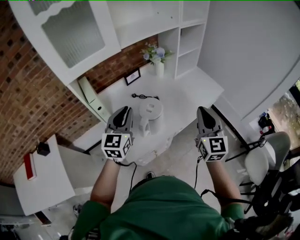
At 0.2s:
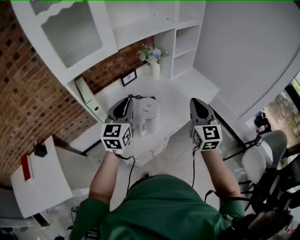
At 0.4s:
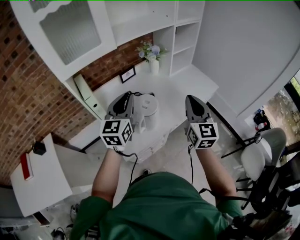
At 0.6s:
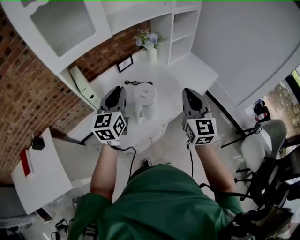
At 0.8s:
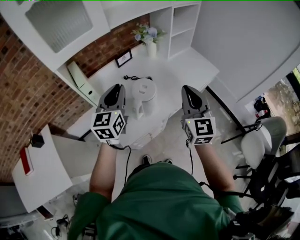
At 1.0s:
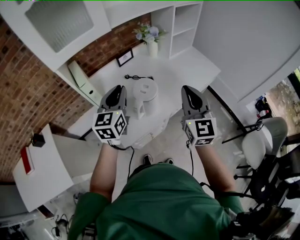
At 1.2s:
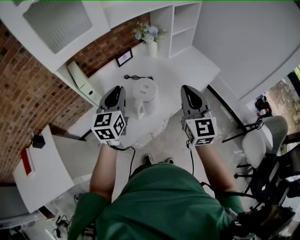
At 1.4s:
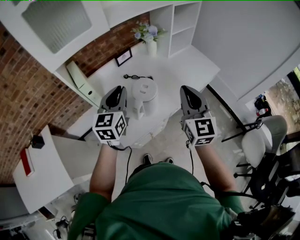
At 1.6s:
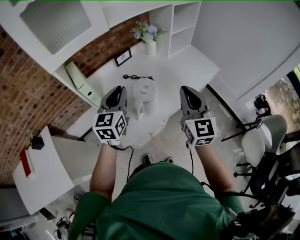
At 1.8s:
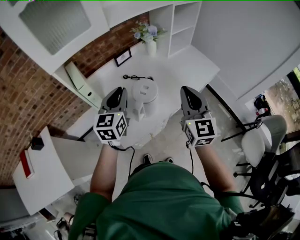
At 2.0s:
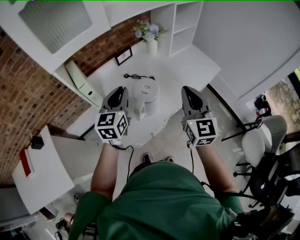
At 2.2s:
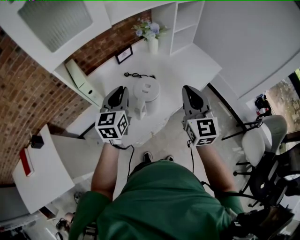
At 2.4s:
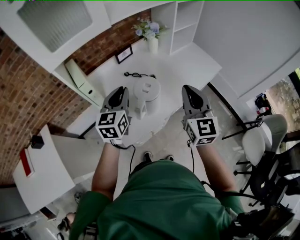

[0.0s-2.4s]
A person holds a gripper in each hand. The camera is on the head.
0.0s to 1.2s: The right gripper is displaced to the left by about 5 cm.
1.2s to 2.4s: The grippers make only small movements.

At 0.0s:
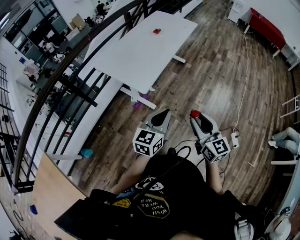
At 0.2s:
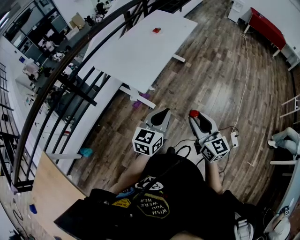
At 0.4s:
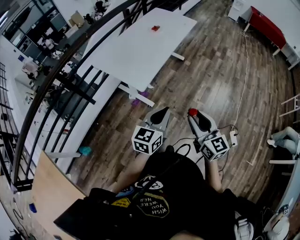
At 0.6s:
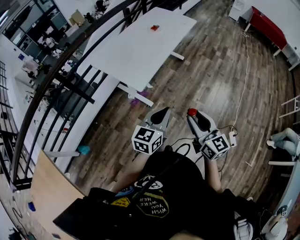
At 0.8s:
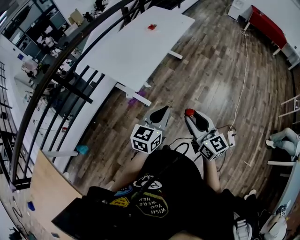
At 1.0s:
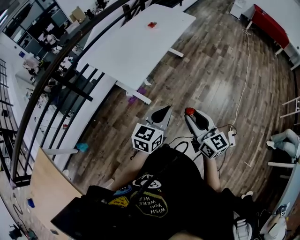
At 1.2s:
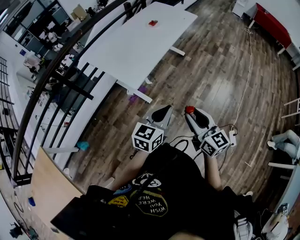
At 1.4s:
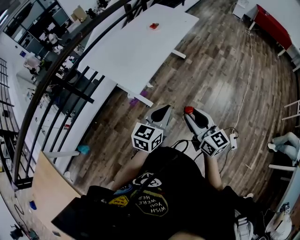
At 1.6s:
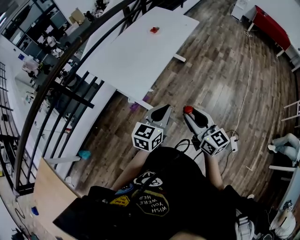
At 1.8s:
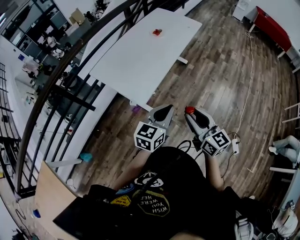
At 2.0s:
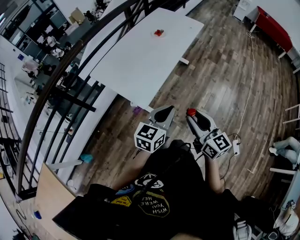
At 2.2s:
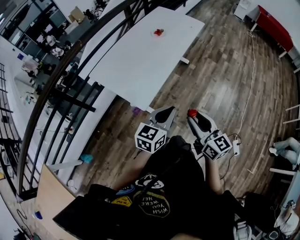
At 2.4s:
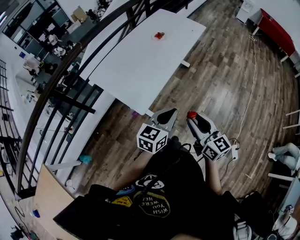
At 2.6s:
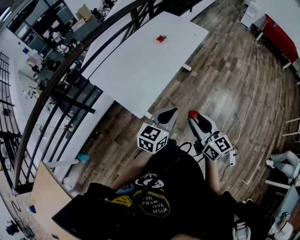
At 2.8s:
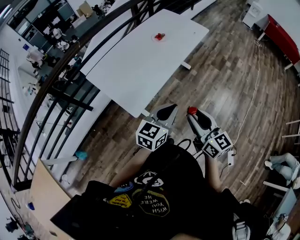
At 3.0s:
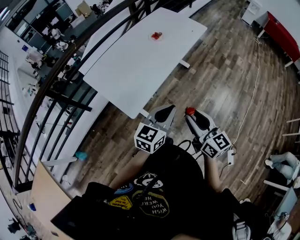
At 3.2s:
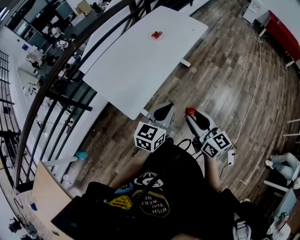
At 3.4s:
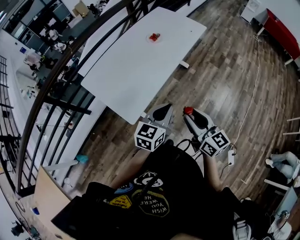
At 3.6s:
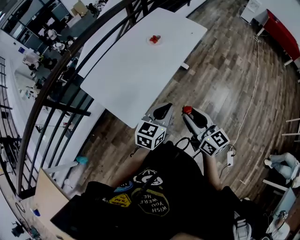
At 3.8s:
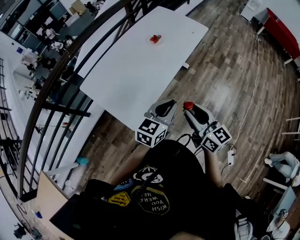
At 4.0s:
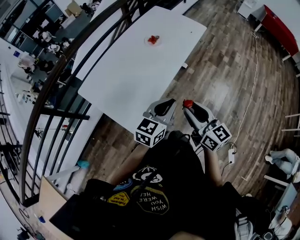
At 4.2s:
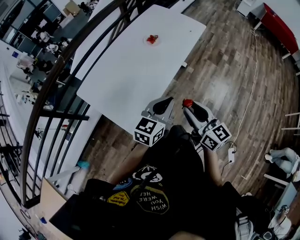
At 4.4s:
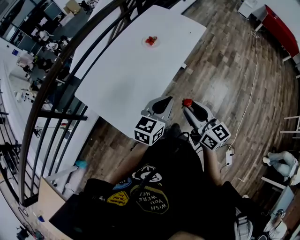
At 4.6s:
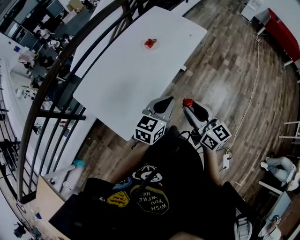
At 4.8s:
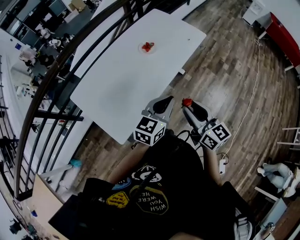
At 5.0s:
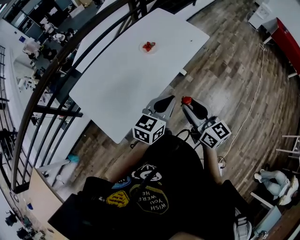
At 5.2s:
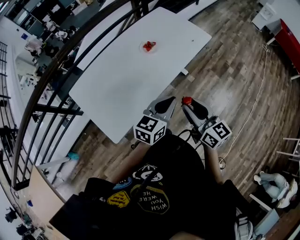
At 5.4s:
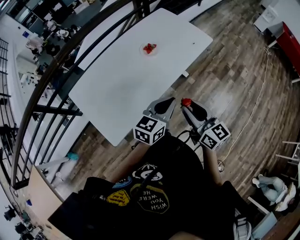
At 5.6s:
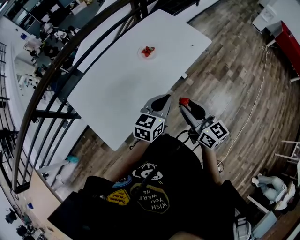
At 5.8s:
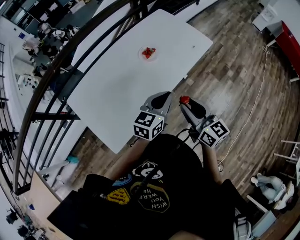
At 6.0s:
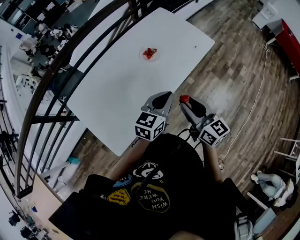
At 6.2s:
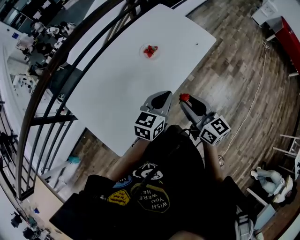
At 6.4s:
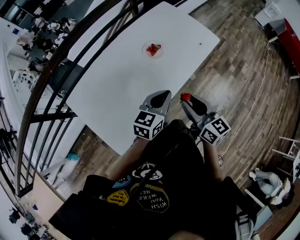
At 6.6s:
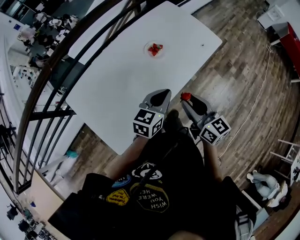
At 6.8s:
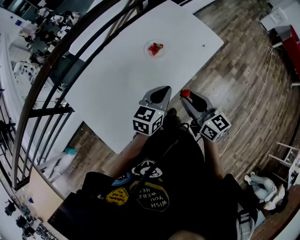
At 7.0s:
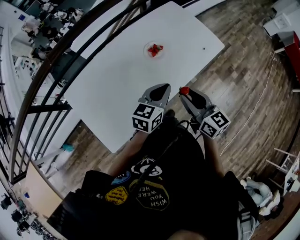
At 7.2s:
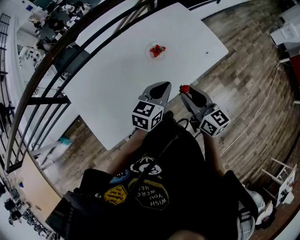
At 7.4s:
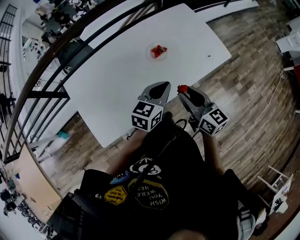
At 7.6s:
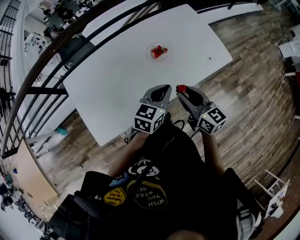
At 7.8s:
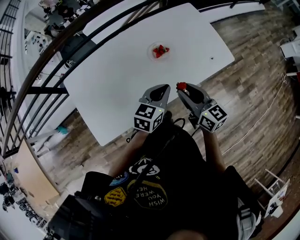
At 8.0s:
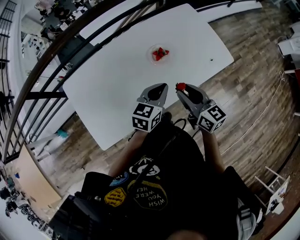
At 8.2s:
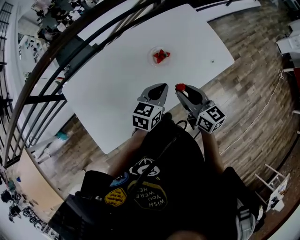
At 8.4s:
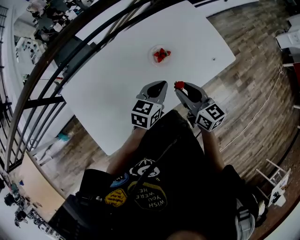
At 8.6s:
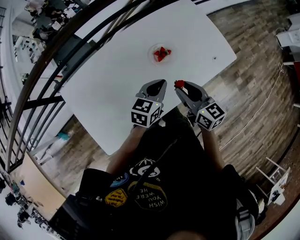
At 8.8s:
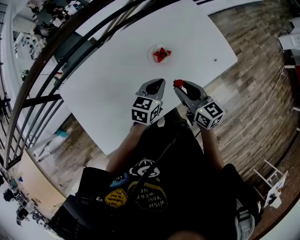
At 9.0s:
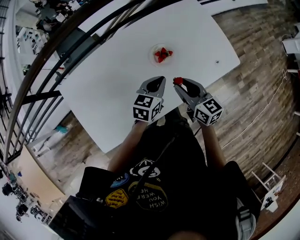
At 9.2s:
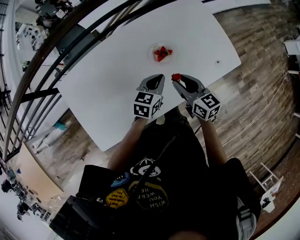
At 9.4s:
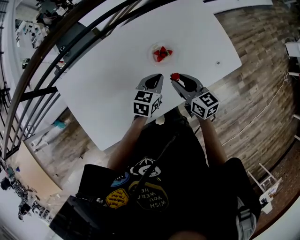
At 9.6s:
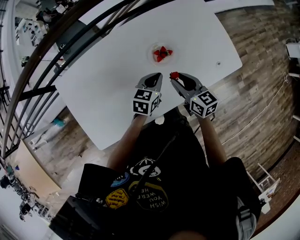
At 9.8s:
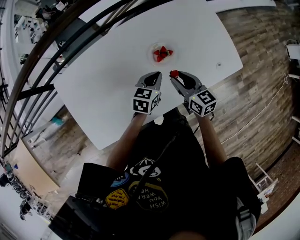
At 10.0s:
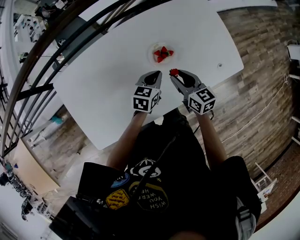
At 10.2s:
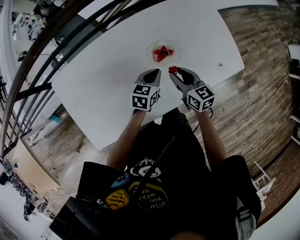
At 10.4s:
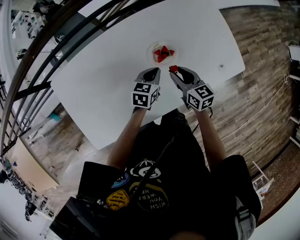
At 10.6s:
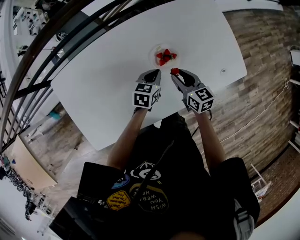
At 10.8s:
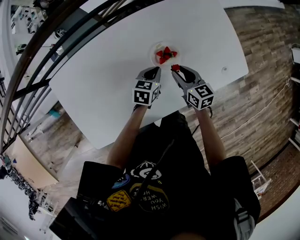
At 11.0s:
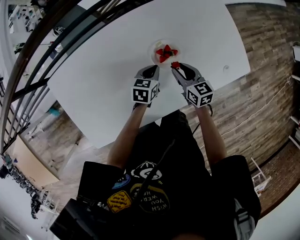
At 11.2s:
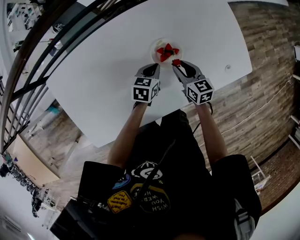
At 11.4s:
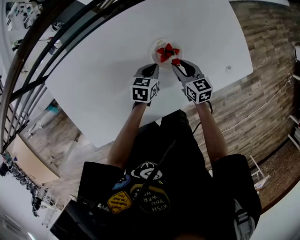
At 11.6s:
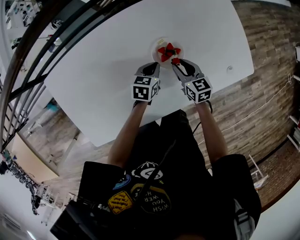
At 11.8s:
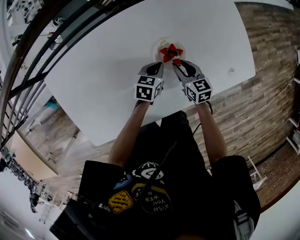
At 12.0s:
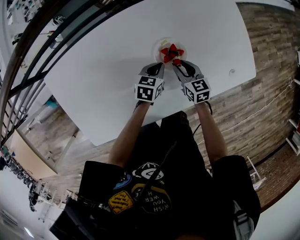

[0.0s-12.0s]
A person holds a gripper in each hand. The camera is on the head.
0.0s to 1.6s: Both grippers move forward, some 15 cm.
1.6s to 3.0s: The grippers both shift forward by some 15 cm.
3.0s to 4.4s: The two grippers go about 20 cm forward.
4.4s to 6.0s: The grippers both shift forward by about 20 cm.
6.0s to 7.6s: Both grippers travel together forward, some 15 cm.
7.6s to 9.0s: The grippers both shift forward and downward by approximately 15 cm.
9.0s to 10.4s: The grippers both shift downward and forward by roughly 15 cm.
10.4s to 12.0s: Both grippers travel together downward, roughly 10 cm.

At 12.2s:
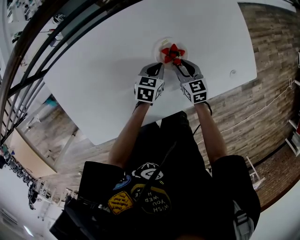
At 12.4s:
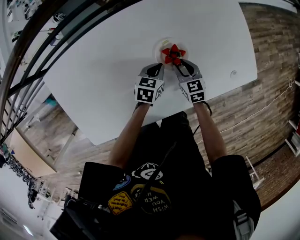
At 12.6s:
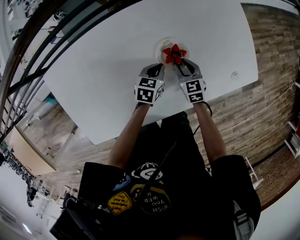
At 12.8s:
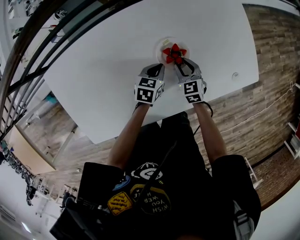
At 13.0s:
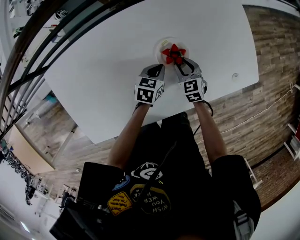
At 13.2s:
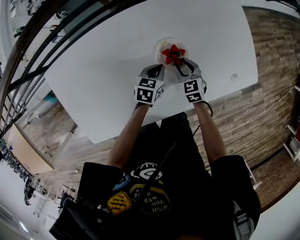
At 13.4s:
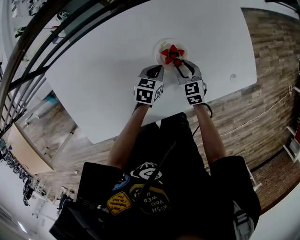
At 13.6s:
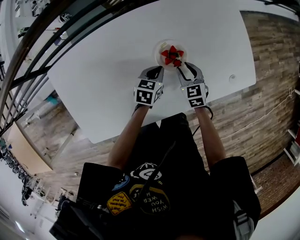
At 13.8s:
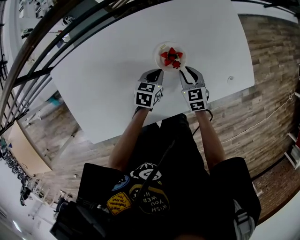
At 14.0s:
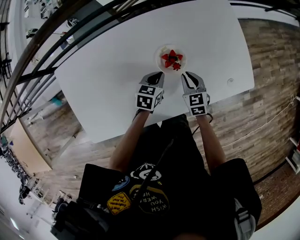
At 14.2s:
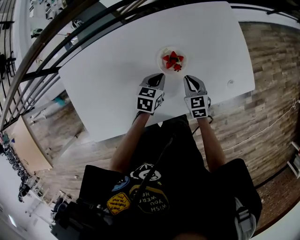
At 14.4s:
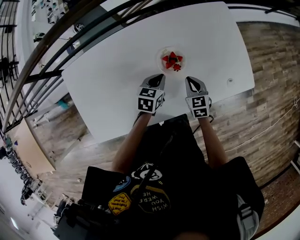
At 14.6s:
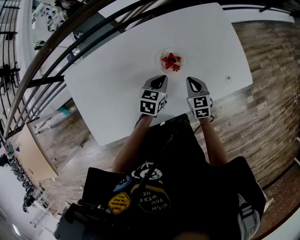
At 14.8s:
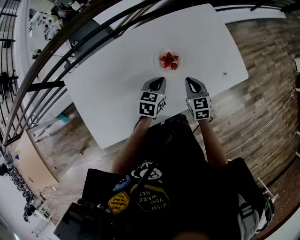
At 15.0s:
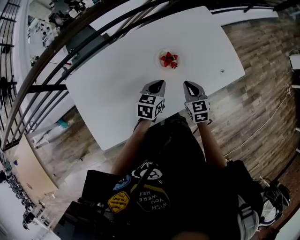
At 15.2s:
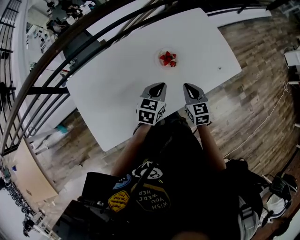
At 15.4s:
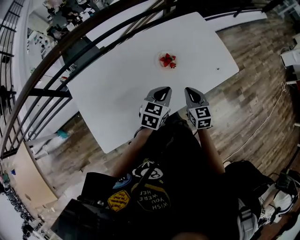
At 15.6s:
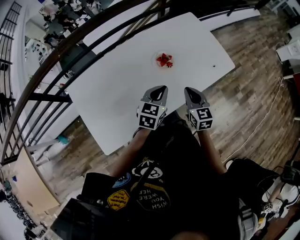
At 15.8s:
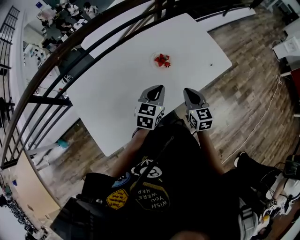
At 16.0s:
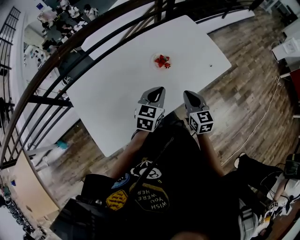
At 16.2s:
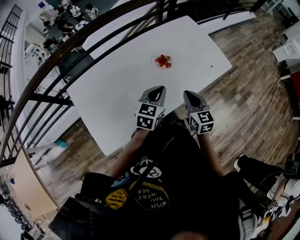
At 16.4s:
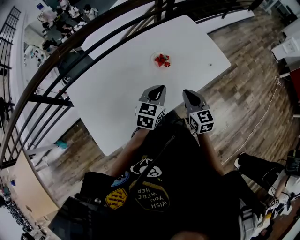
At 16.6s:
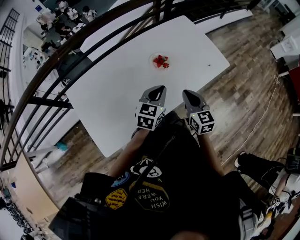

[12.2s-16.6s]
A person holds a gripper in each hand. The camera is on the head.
12.2s to 13.6s: The grippers move only a little.
13.6s to 15.2s: The grippers both shift upward and backward by roughly 20 cm. The right gripper closes.
15.2s to 16.6s: Both grippers move backward and upward, some 10 cm.

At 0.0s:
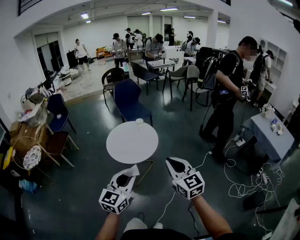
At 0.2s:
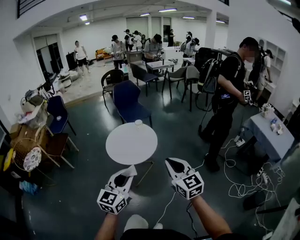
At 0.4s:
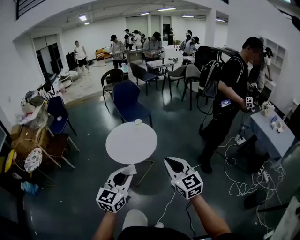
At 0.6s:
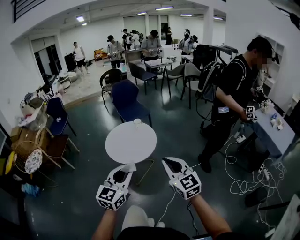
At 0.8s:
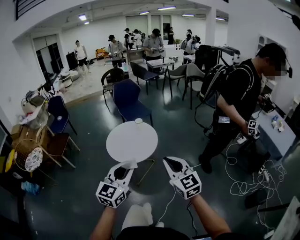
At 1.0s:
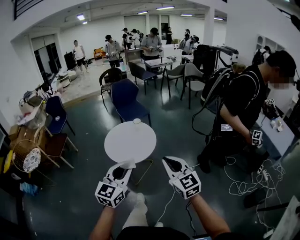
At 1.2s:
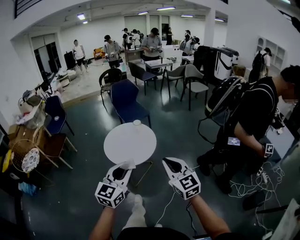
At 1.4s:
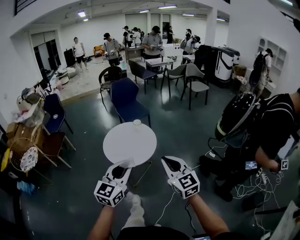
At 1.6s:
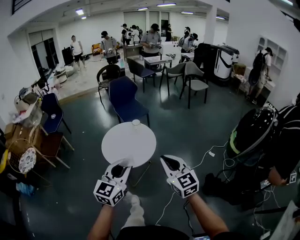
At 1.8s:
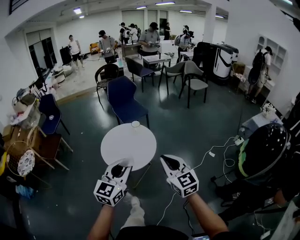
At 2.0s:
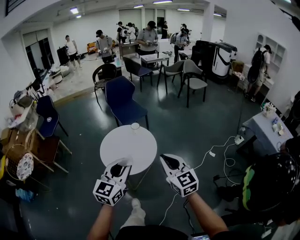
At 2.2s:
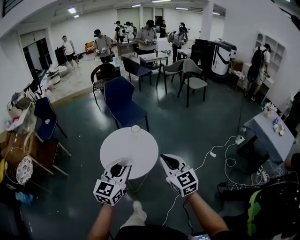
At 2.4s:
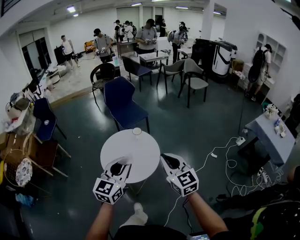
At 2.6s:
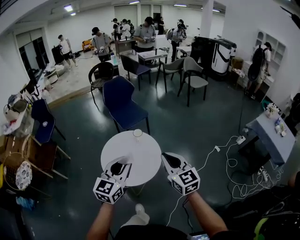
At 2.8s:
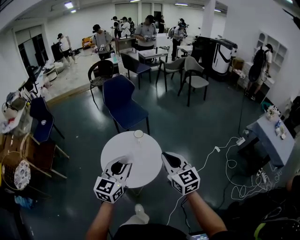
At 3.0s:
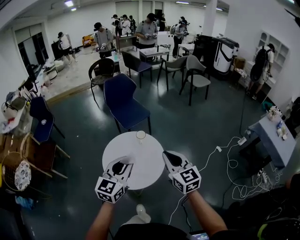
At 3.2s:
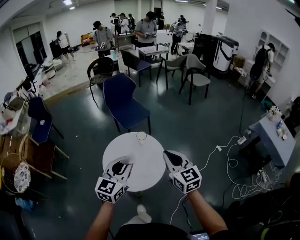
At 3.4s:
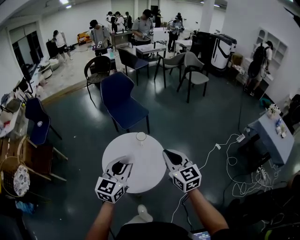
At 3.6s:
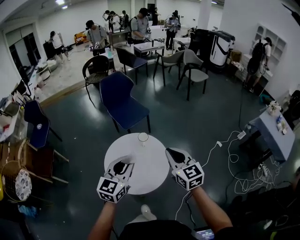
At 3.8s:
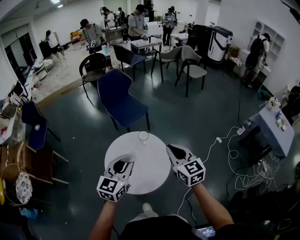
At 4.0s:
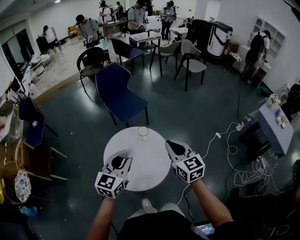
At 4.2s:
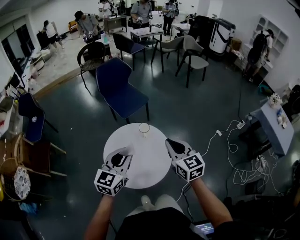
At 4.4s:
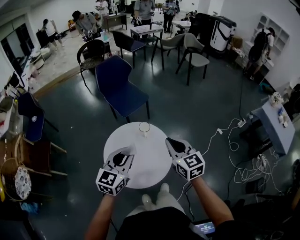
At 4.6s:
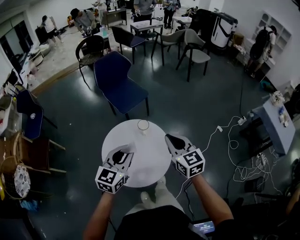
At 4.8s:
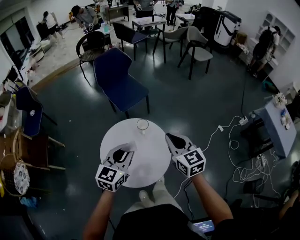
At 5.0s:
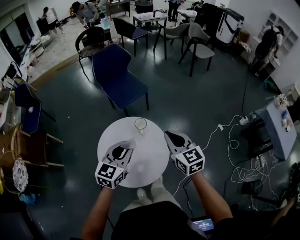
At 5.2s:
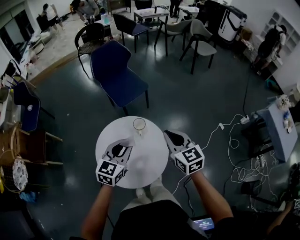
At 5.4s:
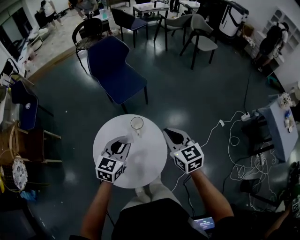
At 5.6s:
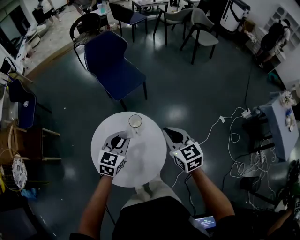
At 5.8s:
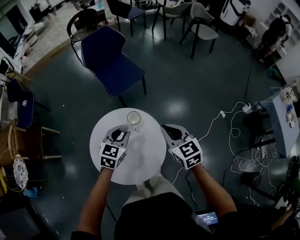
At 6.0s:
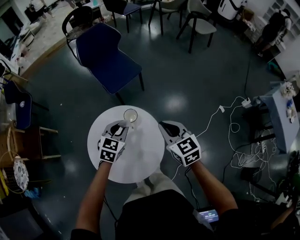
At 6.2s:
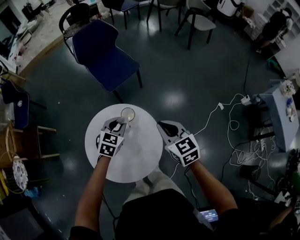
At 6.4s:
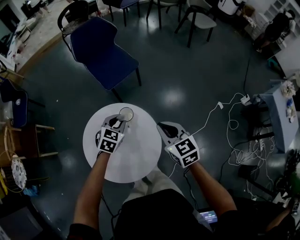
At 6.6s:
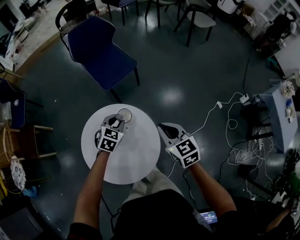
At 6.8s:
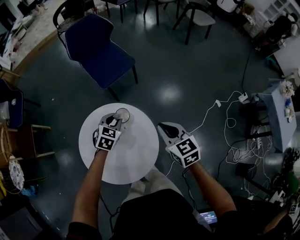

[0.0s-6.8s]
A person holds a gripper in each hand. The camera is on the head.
0.0s to 1.4s: Both grippers move forward, about 5 cm.
1.4s to 2.8s: The grippers both shift forward by roughly 30 cm.
2.8s to 4.0s: Both grippers move forward and to the left, about 15 cm.
4.0s to 5.4s: Both grippers travel together forward and downward, about 20 cm.
5.4s to 6.8s: The left gripper moves downward and forward, about 25 cm, and swivels roughly 20 degrees. Meanwhile the right gripper goes approximately 15 cm downward and forward.
